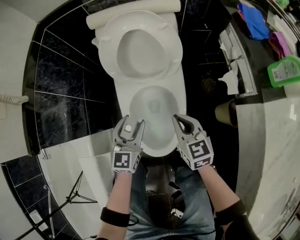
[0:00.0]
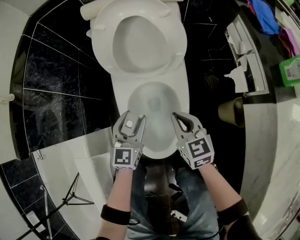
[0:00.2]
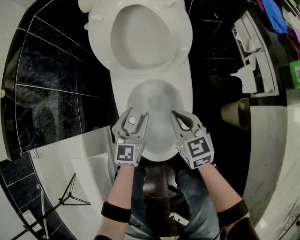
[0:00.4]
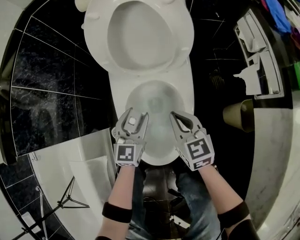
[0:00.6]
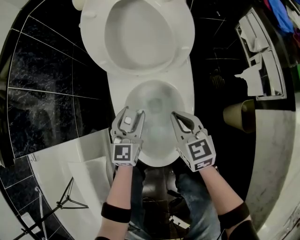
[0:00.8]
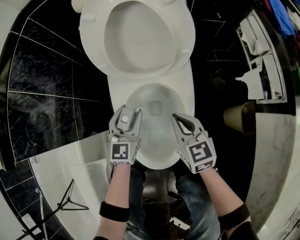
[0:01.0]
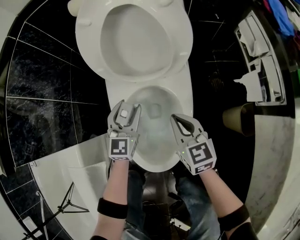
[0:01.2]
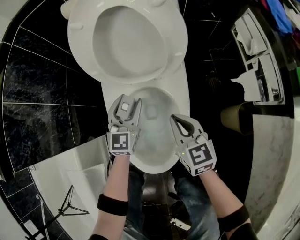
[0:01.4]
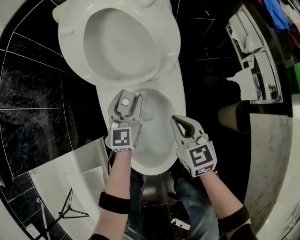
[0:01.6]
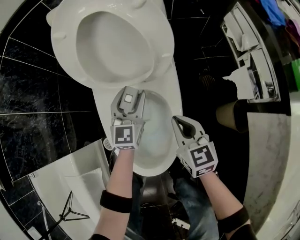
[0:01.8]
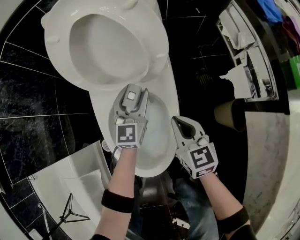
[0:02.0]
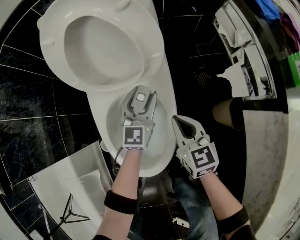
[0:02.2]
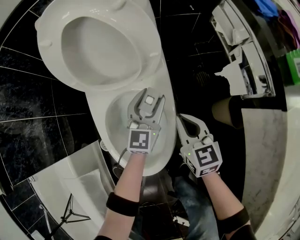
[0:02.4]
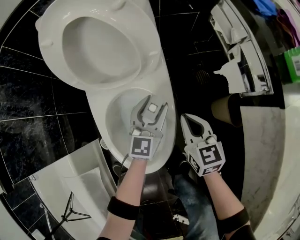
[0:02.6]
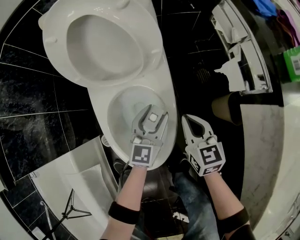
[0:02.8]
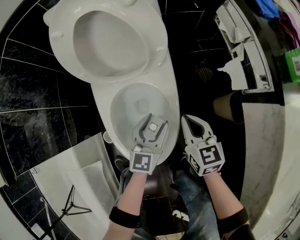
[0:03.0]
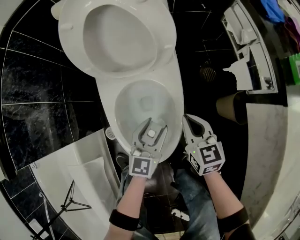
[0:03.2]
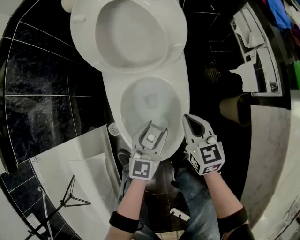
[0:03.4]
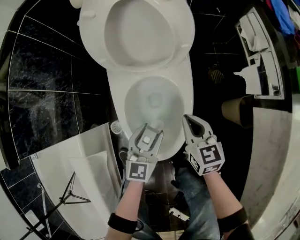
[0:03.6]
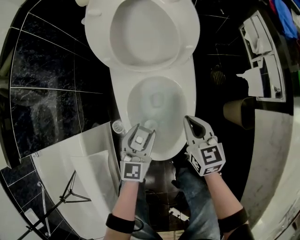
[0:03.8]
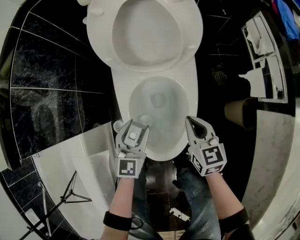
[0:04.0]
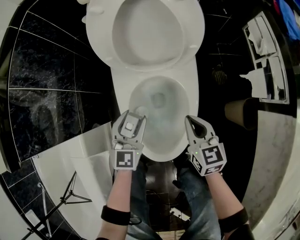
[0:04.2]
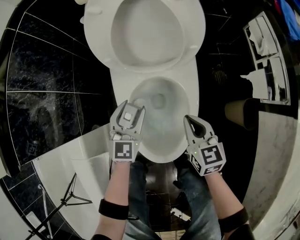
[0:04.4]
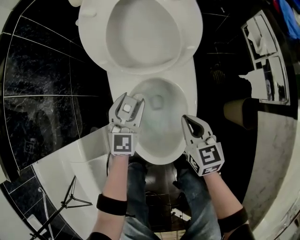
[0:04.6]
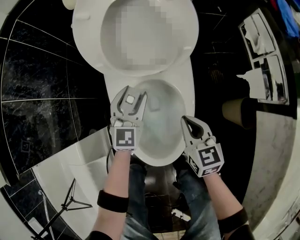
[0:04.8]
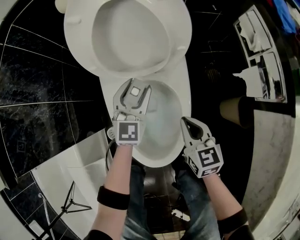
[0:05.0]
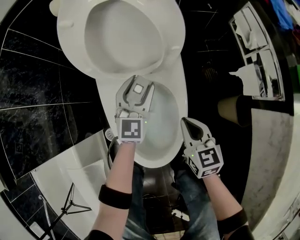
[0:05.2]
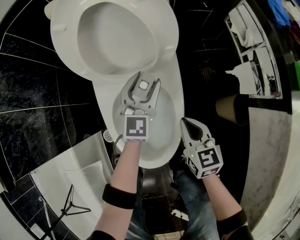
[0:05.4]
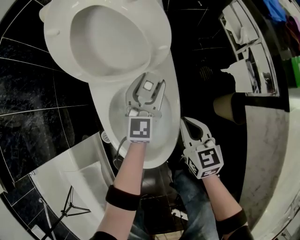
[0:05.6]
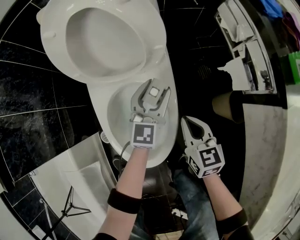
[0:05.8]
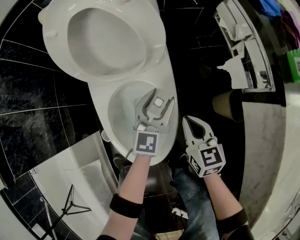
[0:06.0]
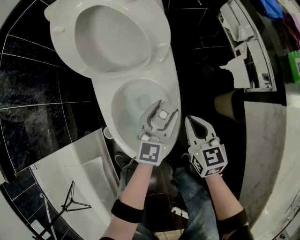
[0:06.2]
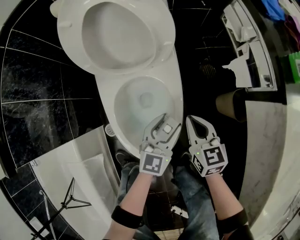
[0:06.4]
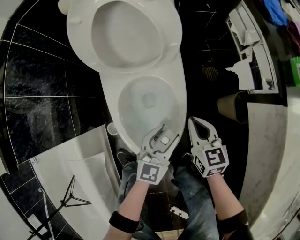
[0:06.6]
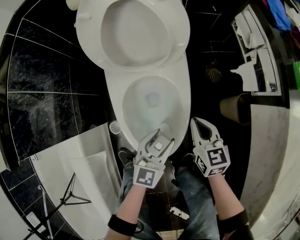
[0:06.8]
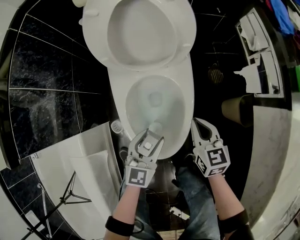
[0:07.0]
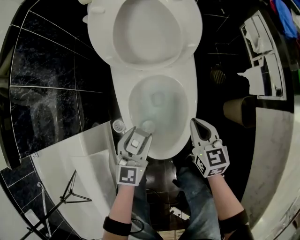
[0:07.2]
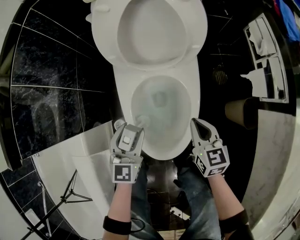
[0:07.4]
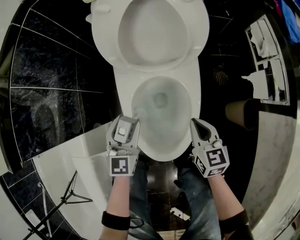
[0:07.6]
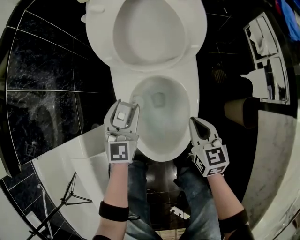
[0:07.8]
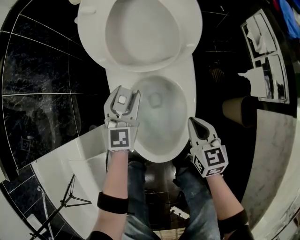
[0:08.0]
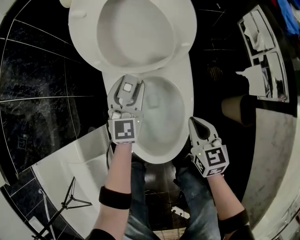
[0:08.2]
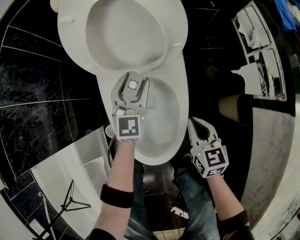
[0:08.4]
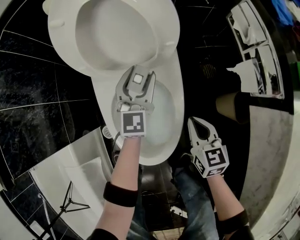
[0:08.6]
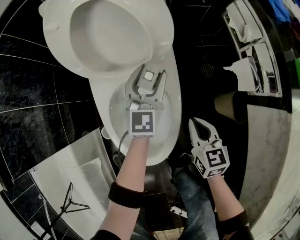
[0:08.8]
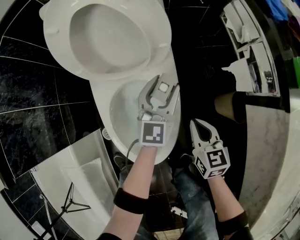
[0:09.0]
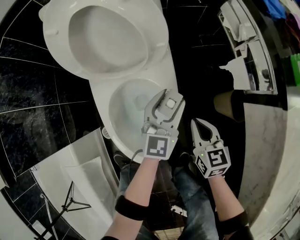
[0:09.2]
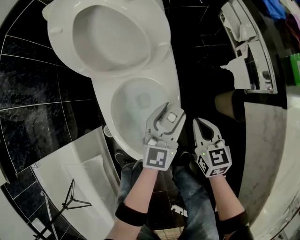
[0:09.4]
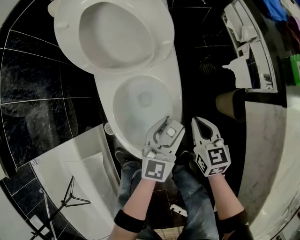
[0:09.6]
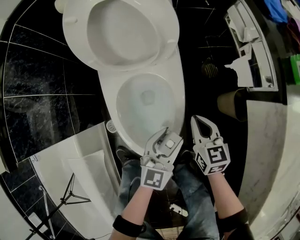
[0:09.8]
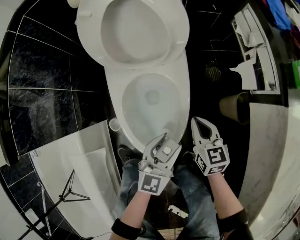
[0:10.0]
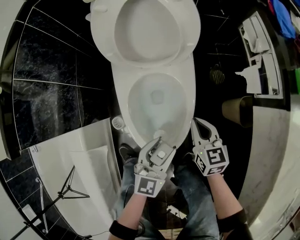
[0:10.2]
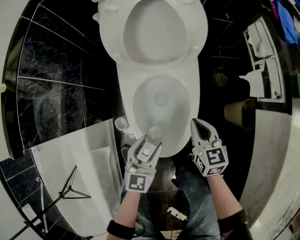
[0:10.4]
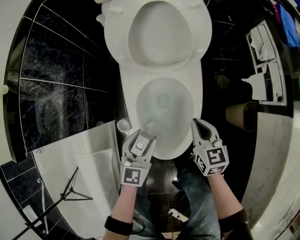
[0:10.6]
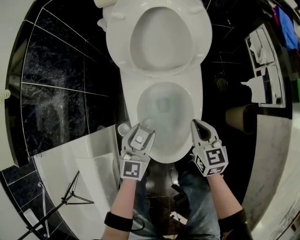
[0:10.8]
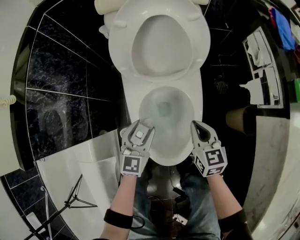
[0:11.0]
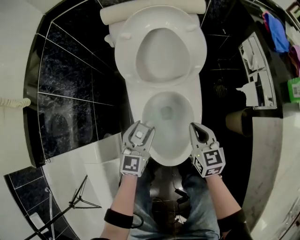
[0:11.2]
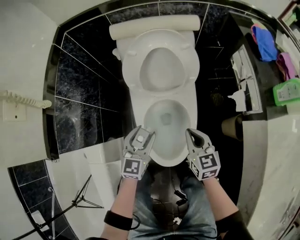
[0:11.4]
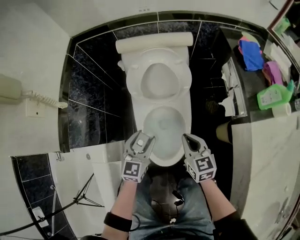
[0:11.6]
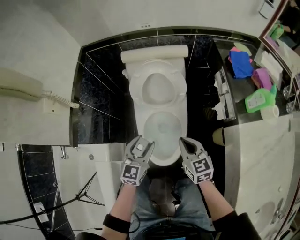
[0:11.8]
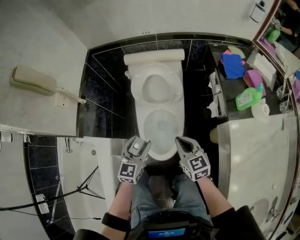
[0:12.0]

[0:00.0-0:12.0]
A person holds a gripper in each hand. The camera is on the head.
0:00.0 to 0:01.6: The left gripper heads forward, downward and to the right, covering about 20 cm; the right gripper is displaced downward by some 10 cm.
0:01.6 to 0:03.0: The left gripper heads backward and to the right, covering approximately 15 cm; the right gripper goes roughly 5 cm to the right.
0:03.0 to 0:04.4: The right gripper shifts about 10 cm to the left. The left gripper is displaced to the left by some 15 cm.
0:04.4 to 0:06.0: The left gripper goes about 20 cm to the right; the right gripper moves to the right, some 10 cm.
0:06.0 to 0:07.6: The left gripper moves to the left, roughly 25 cm, and changes its angle by roughly 20 degrees; the right gripper moves to the left, some 10 cm.
0:07.6 to 0:09.0: The left gripper goes about 25 cm to the right and forward, and swivels roughly 20 degrees. Meanwhile the right gripper goes roughly 10 cm to the right.
0:09.0 to 0:10.4: The left gripper goes approximately 25 cm backward and to the left. Meanwhile the right gripper is displaced to the left by approximately 10 cm.
0:10.4 to 0:12.0: The grippers both shift upward by some 30 cm.

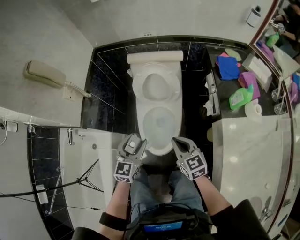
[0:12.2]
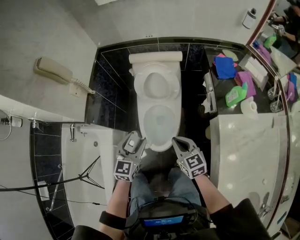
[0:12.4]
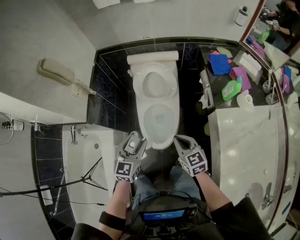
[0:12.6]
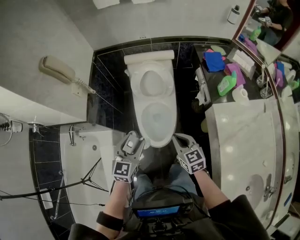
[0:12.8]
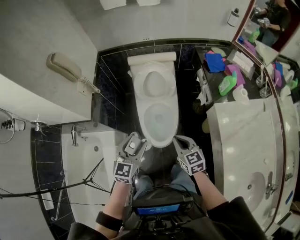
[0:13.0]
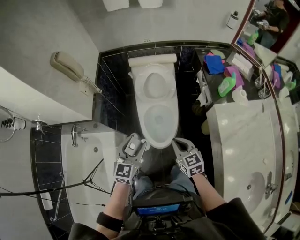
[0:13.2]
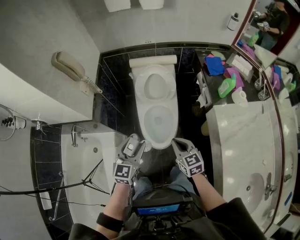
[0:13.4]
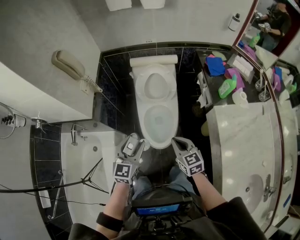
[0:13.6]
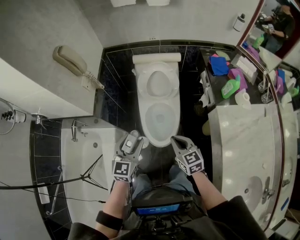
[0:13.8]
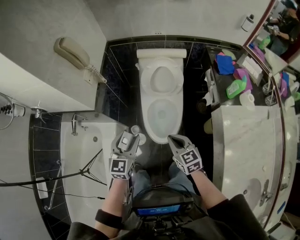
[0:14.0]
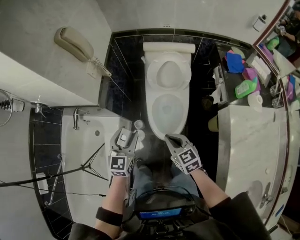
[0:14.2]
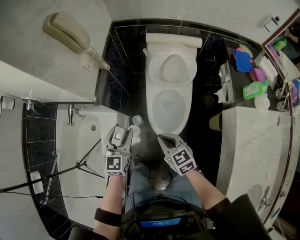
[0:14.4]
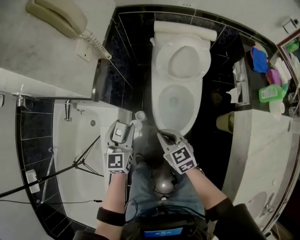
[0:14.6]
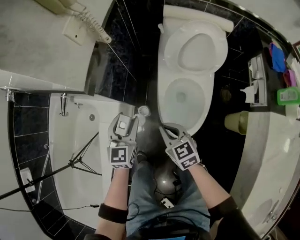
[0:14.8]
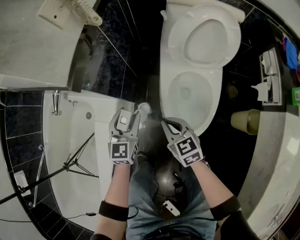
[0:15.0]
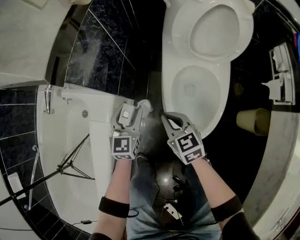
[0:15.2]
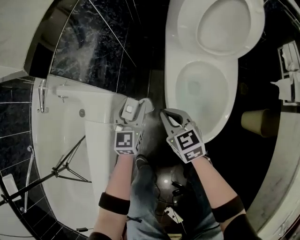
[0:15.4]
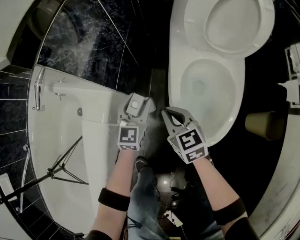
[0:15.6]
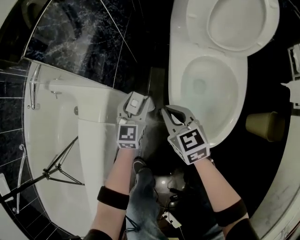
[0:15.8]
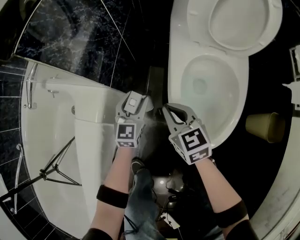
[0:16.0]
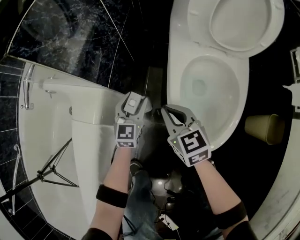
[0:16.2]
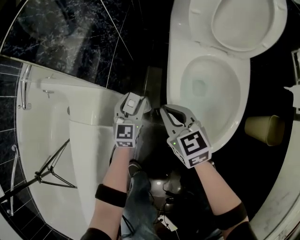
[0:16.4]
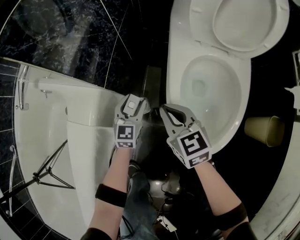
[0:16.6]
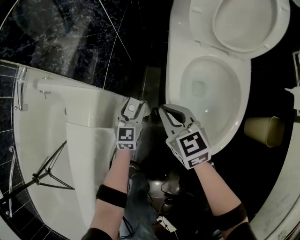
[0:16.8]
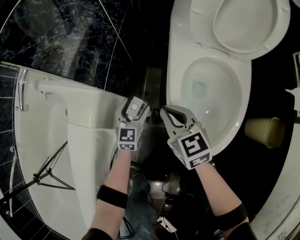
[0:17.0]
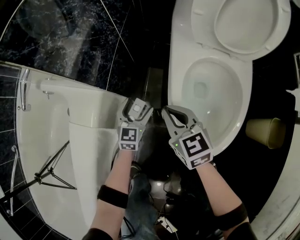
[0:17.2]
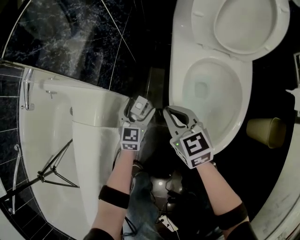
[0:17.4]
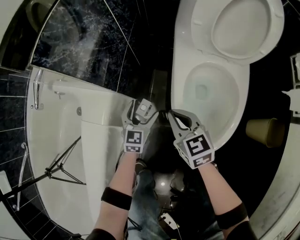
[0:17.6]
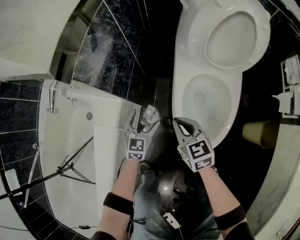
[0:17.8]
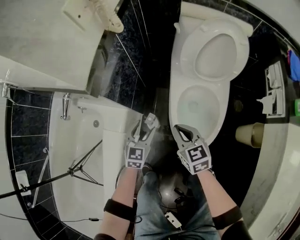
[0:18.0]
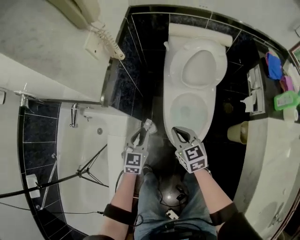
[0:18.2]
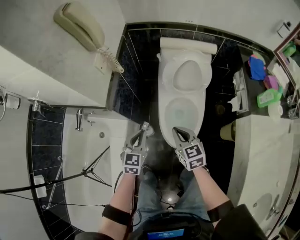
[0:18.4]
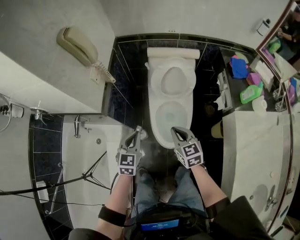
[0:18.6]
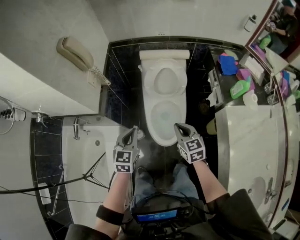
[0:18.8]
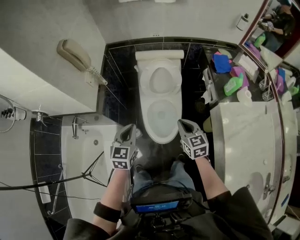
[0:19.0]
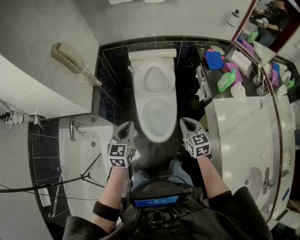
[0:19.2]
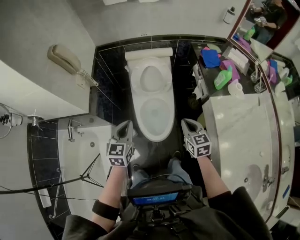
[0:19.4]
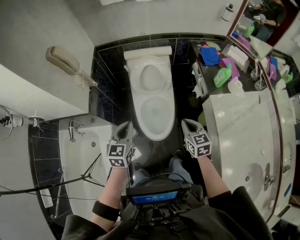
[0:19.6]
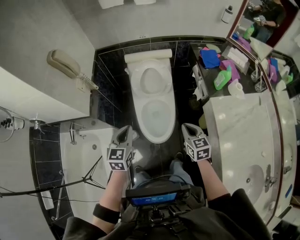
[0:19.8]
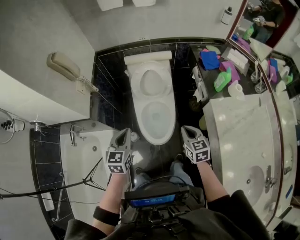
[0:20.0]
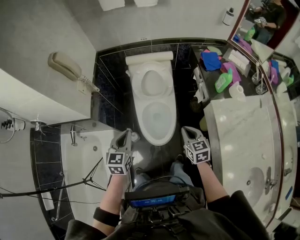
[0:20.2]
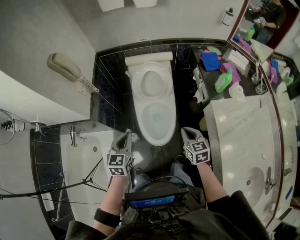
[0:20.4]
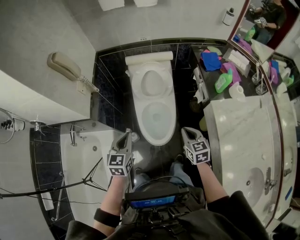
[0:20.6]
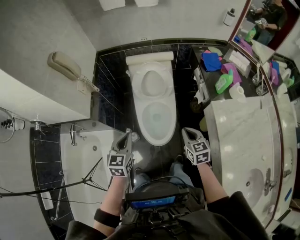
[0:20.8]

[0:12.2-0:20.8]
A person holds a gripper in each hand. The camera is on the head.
0:12.2 to 0:13.6: The left gripper heads upward, backward and to the left, covering approximately 15 cm. The right gripper travels backward, upward and to the left by some 15 cm.
0:13.6 to 0:15.0: The left gripper shifts about 40 cm downward, forward and to the left, and turns by approximately 20 degrees, while the right gripper shifts roughly 40 cm downward, to the left and forward.
0:15.0 to 0:16.6: The right gripper travels downward by about 20 cm. Meanwhile the left gripper goes about 30 cm downward.
0:16.6 to 0:18.0: The grippers both shift upward by roughly 20 cm.
0:18.0 to 0:19.4: The left gripper heads upward, covering roughly 40 cm, and closes its fingers. The right gripper travels upward and to the right by roughly 40 cm, and rotates some 30 degrees.
0:19.4 to 0:20.8: There are only small adjustments of the grippers.

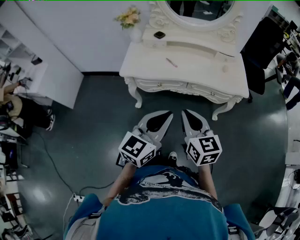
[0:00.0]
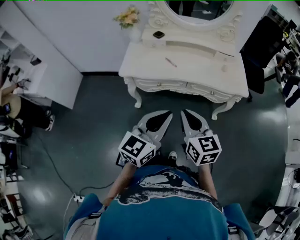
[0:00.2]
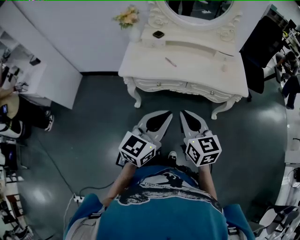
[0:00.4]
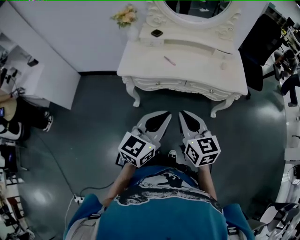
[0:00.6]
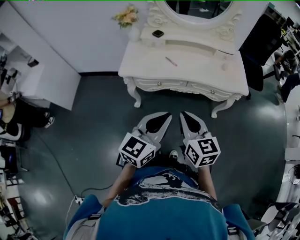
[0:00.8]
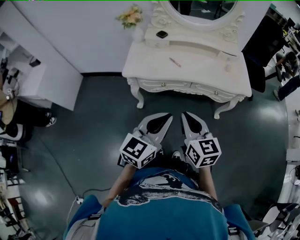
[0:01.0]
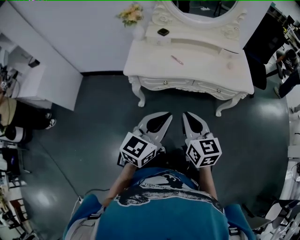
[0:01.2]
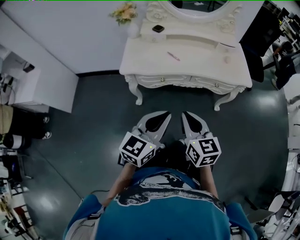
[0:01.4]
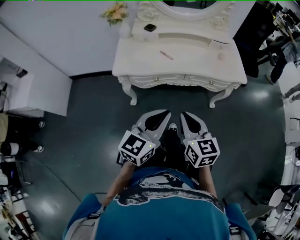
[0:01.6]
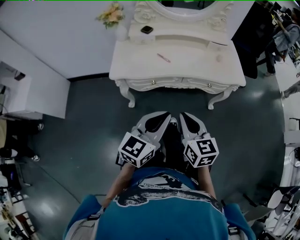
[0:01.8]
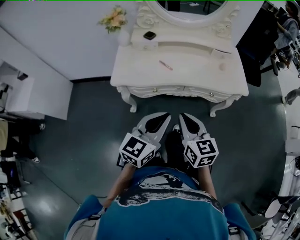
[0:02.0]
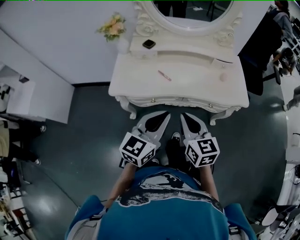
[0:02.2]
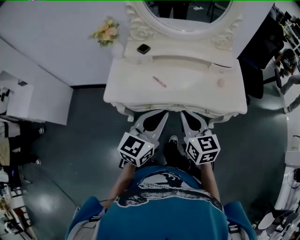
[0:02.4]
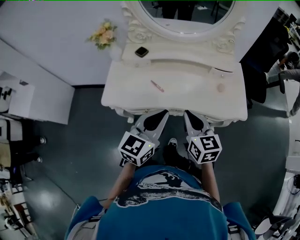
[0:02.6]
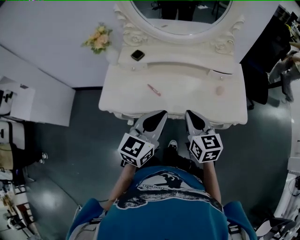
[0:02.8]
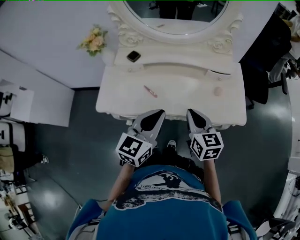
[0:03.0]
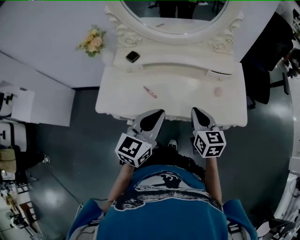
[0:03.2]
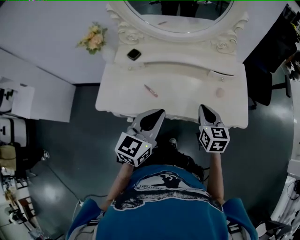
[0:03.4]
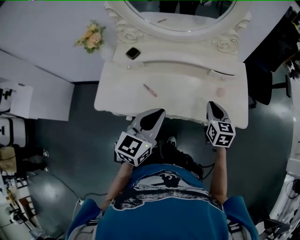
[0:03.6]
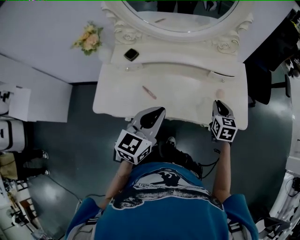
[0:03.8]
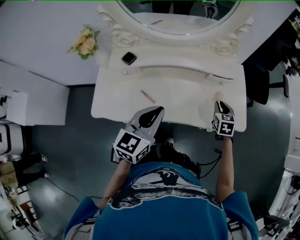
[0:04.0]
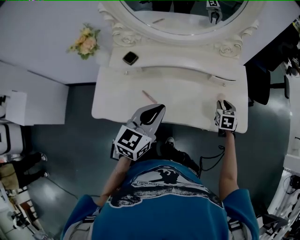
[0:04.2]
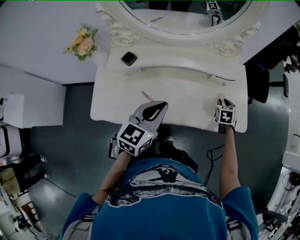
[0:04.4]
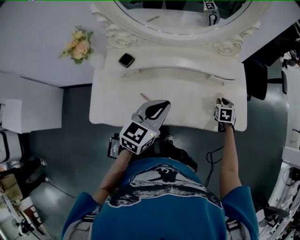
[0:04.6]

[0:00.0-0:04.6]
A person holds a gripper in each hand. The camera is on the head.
0:00.0 to 0:01.6: The left gripper ends up about 5 cm from where it was; the right gripper changes place by about 5 cm.
0:01.6 to 0:03.0: The right gripper is displaced forward and to the right by roughly 35 cm. Meanwhile the left gripper shifts roughly 30 cm forward.
0:03.0 to 0:04.6: The left gripper goes roughly 15 cm forward; the right gripper is displaced forward, downward and to the right by approximately 35 cm, and angles its fingers downward, by approximately 30 degrees.
